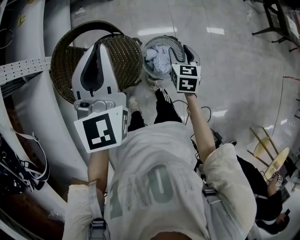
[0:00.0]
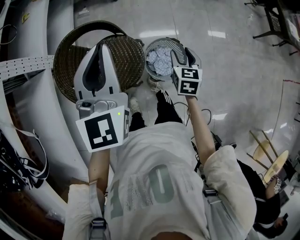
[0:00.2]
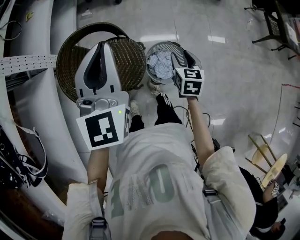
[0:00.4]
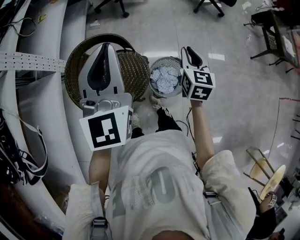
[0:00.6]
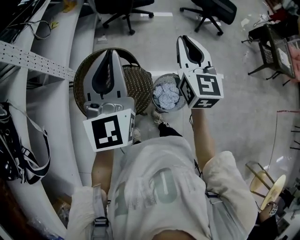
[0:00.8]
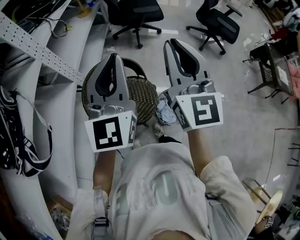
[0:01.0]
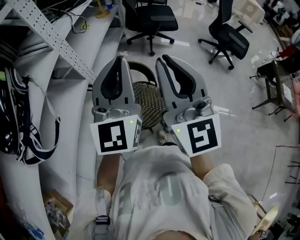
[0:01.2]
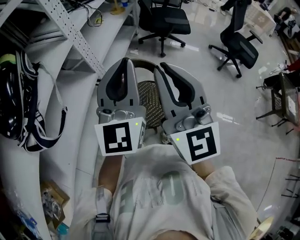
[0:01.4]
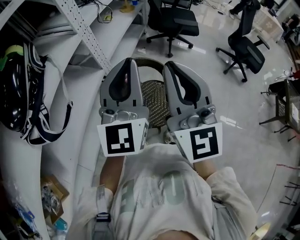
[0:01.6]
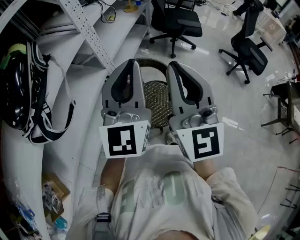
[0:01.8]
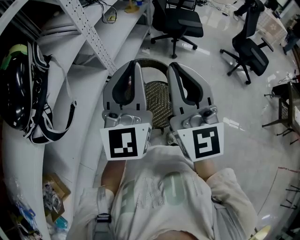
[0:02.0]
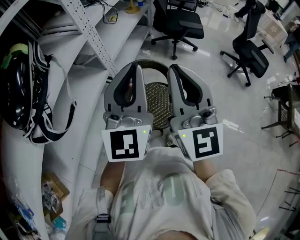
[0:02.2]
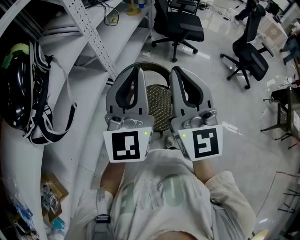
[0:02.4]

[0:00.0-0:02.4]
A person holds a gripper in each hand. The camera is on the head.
0:00.0 to 0:01.2: The left gripper is displaced upward, to the left and backward by some 25 cm, and turns by some 30 degrees; the right gripper travels upward and to the left by roughly 50 cm, points its fingers roughly 60 degrees further upward, and closes.
0:01.2 to 0:02.4: The right gripper moves roughly 5 cm. Meanwhile the left gripper goes roughly 5 cm to the left.

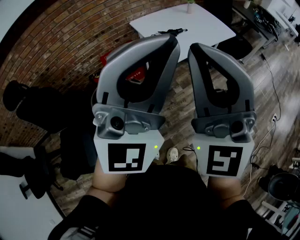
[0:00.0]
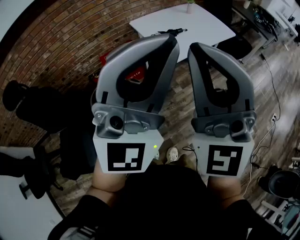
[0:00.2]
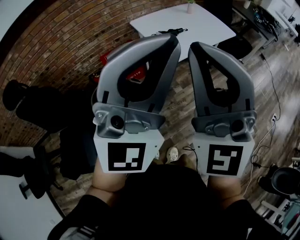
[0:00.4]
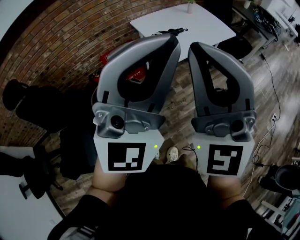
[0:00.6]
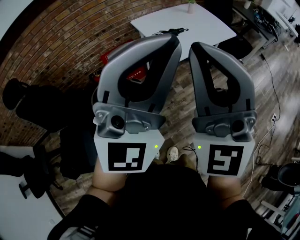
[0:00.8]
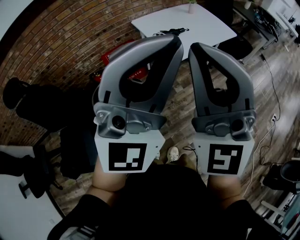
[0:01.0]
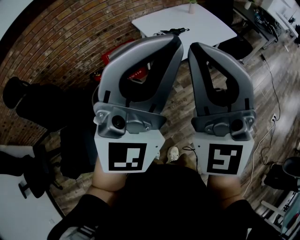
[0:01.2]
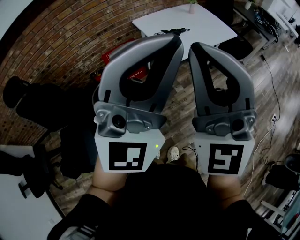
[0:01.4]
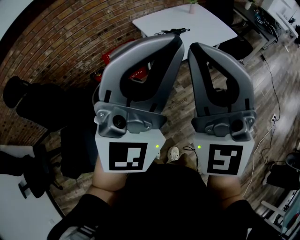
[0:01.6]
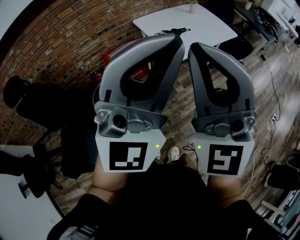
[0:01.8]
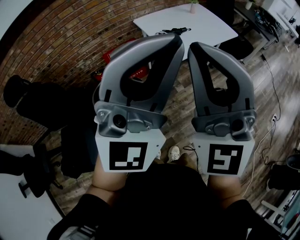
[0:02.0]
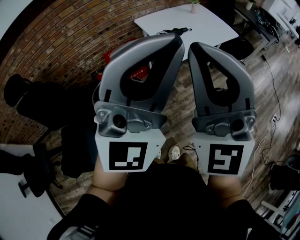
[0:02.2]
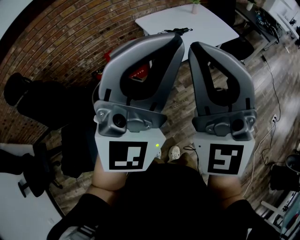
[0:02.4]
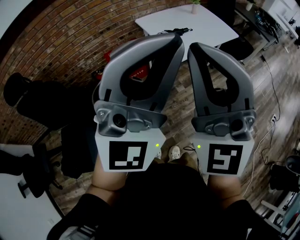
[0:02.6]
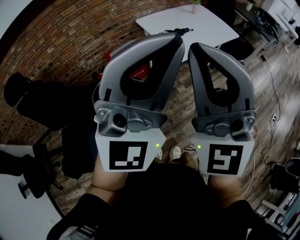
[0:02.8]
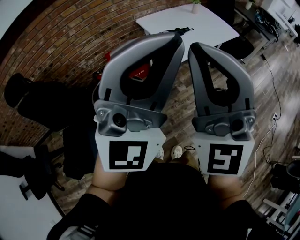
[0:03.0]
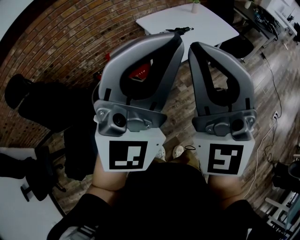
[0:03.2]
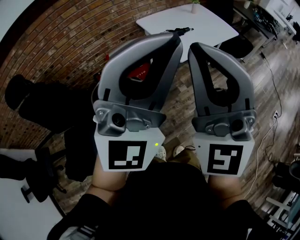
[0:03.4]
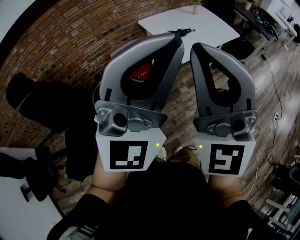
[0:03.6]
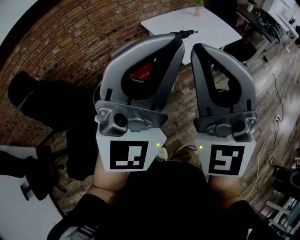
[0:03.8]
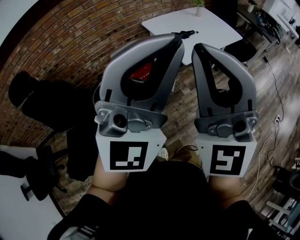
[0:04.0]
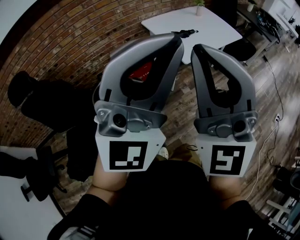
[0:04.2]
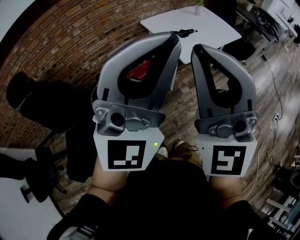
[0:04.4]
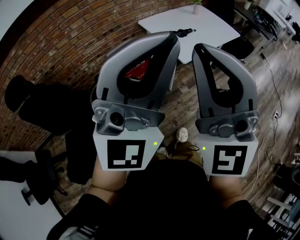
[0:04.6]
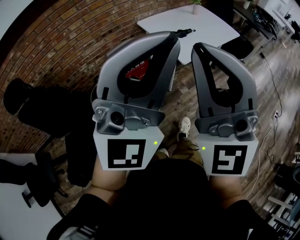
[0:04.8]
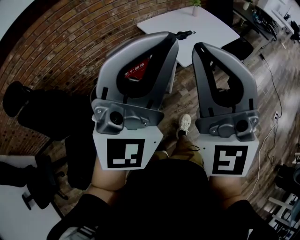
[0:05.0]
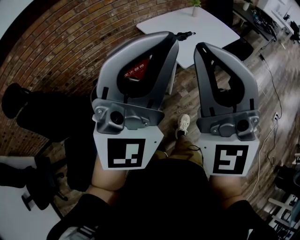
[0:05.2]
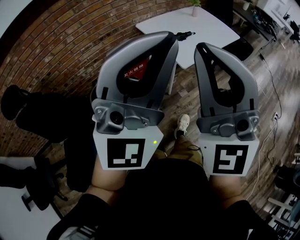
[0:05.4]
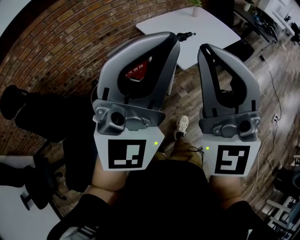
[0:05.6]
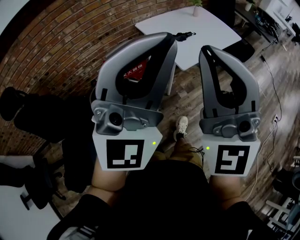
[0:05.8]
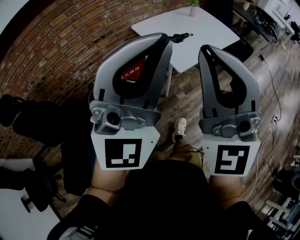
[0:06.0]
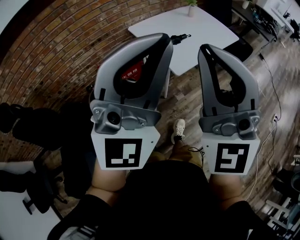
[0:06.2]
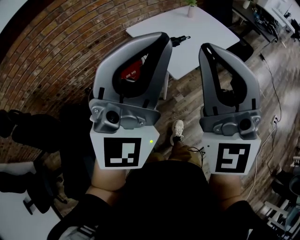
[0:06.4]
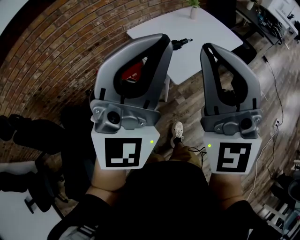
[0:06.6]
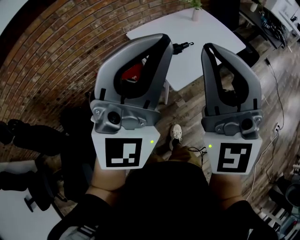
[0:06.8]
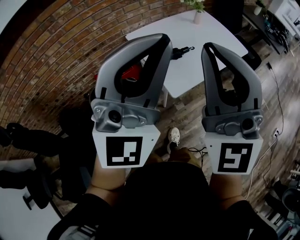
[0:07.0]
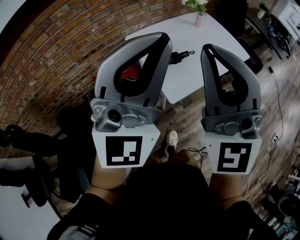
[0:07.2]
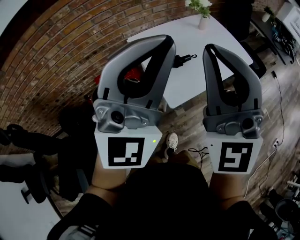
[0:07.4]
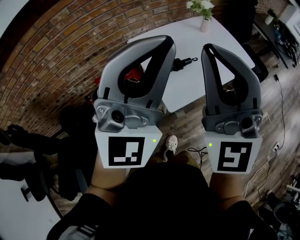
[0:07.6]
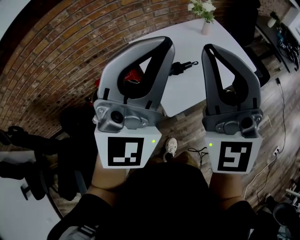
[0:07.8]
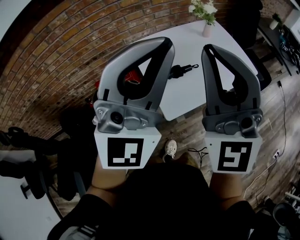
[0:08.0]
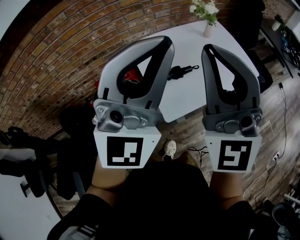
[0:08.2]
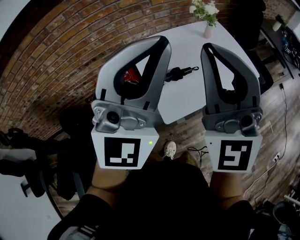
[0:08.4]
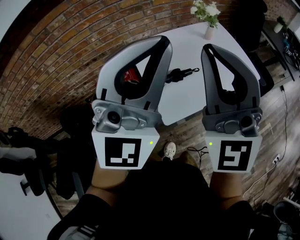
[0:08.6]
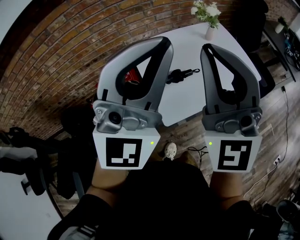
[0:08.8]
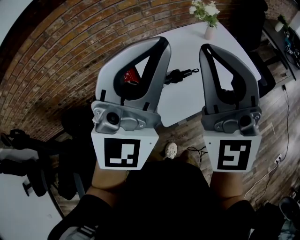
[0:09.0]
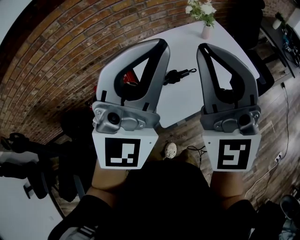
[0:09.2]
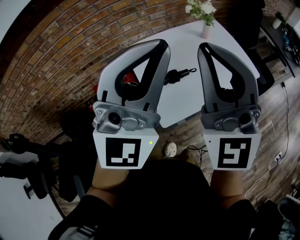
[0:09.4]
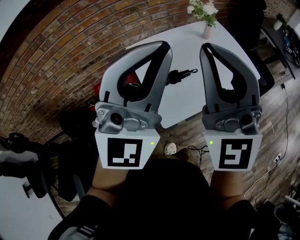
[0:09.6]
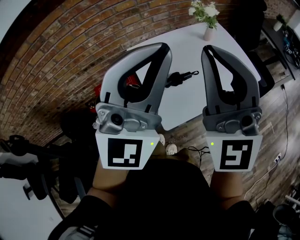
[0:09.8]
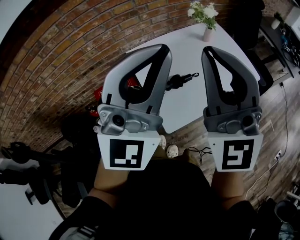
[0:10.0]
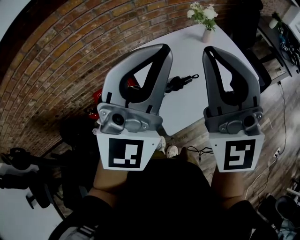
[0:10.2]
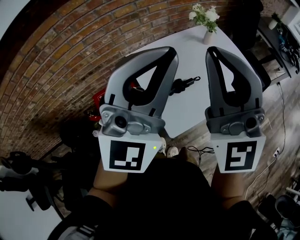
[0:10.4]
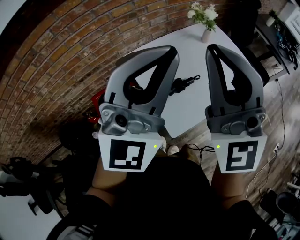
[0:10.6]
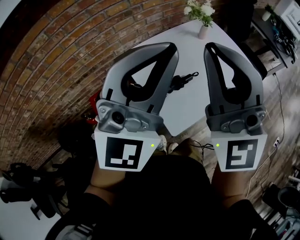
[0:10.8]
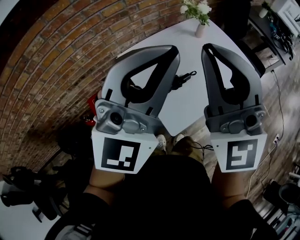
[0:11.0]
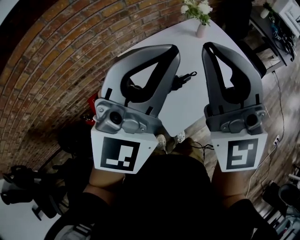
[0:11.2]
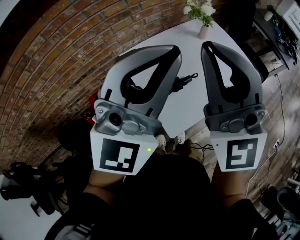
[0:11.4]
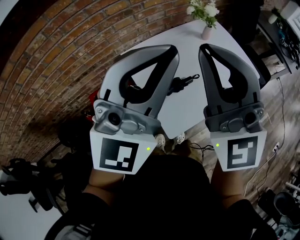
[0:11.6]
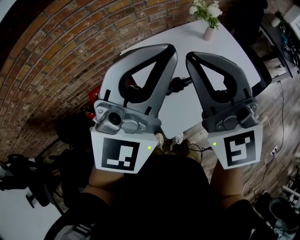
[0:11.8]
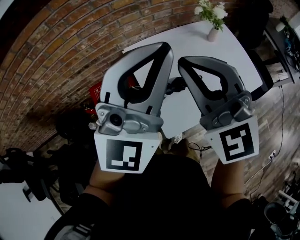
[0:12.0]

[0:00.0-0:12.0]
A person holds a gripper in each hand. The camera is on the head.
0:00.0 to 0:01.6: The grippers stay close to where they were, moving slightly.
0:01.6 to 0:03.0: There are only small adjustments of the grippers.
0:03.0 to 0:04.4: The grippers stay close to where they were, moving slightly.
0:04.4 to 0:06.0: The grippers both shift forward by roughly 10 cm.
0:06.0 to 0:07.6: Both grippers move forward, roughly 30 cm.
0:07.6 to 0:09.0: Both grippers move forward, roughly 10 cm.
0:09.0 to 0:10.4: The grippers both shift forward by about 5 cm.
0:10.4 to 0:12.0: The left gripper changes place by about 5 cm, while the right gripper is displaced downward by some 10 cm, and turns by approximately 30 degrees.

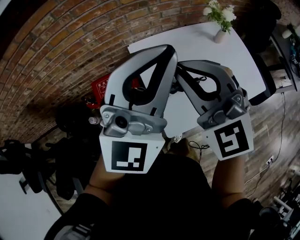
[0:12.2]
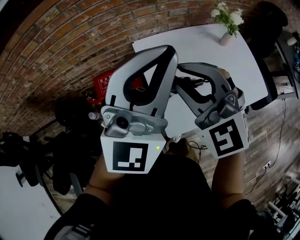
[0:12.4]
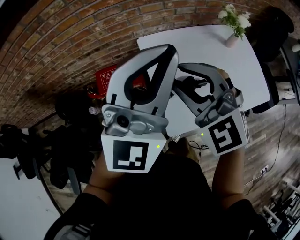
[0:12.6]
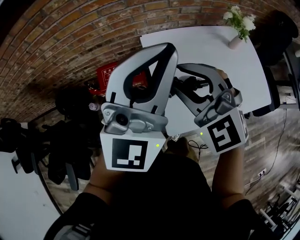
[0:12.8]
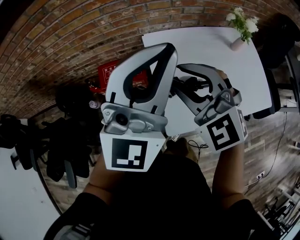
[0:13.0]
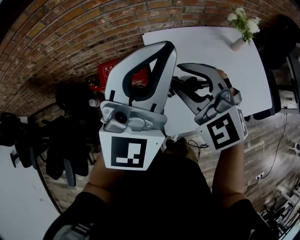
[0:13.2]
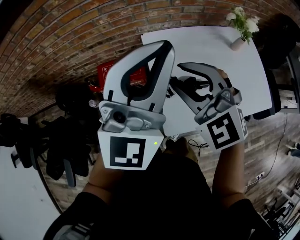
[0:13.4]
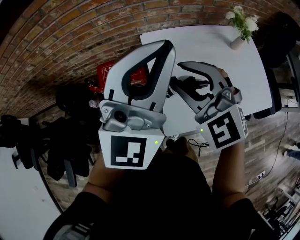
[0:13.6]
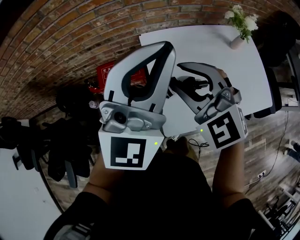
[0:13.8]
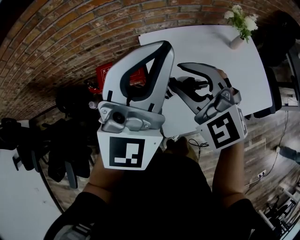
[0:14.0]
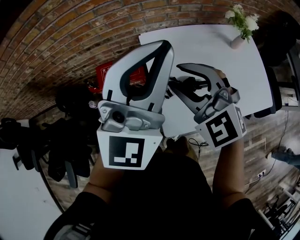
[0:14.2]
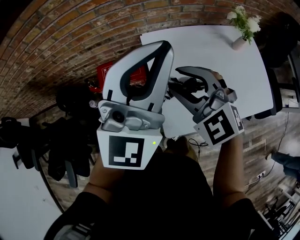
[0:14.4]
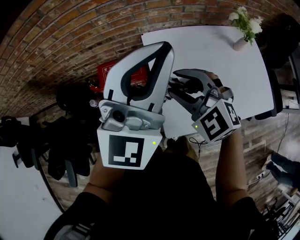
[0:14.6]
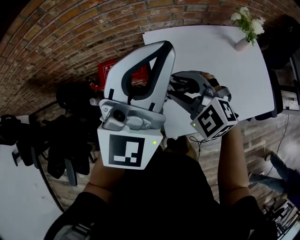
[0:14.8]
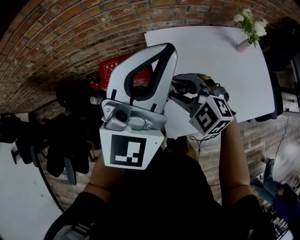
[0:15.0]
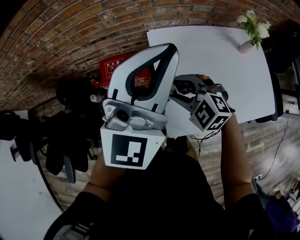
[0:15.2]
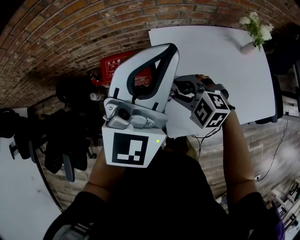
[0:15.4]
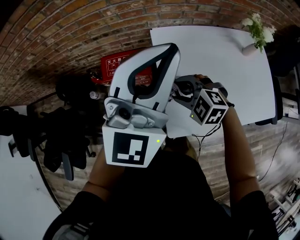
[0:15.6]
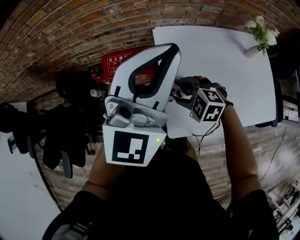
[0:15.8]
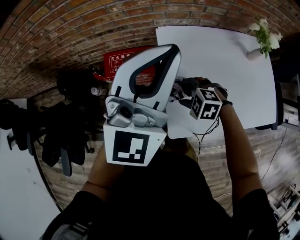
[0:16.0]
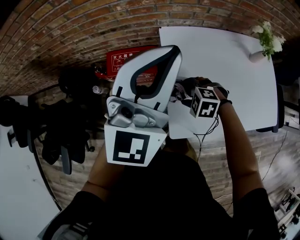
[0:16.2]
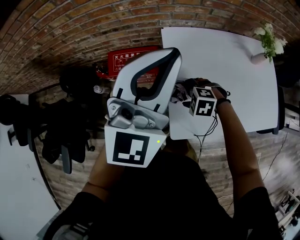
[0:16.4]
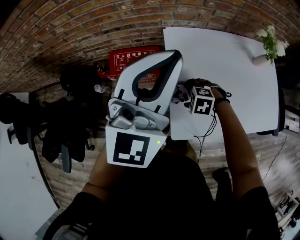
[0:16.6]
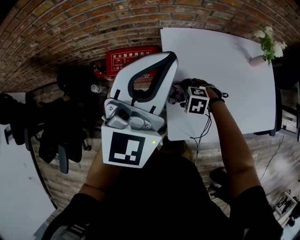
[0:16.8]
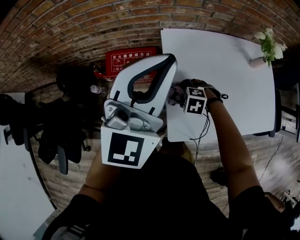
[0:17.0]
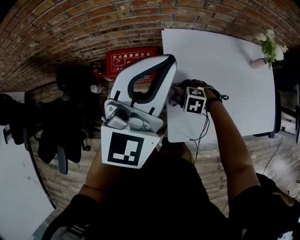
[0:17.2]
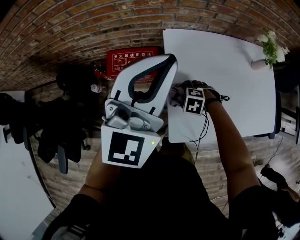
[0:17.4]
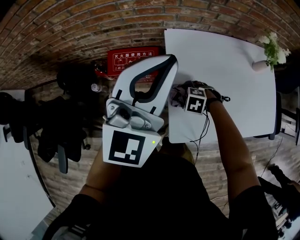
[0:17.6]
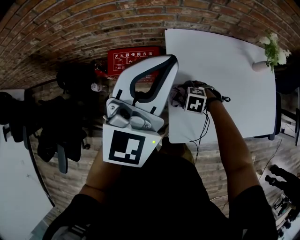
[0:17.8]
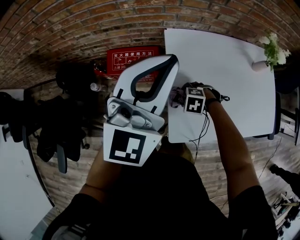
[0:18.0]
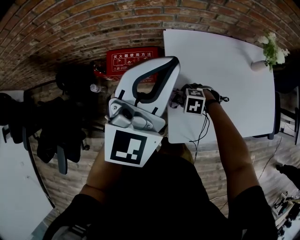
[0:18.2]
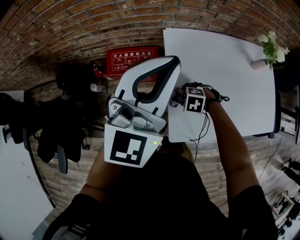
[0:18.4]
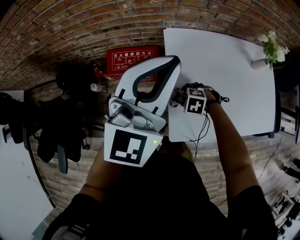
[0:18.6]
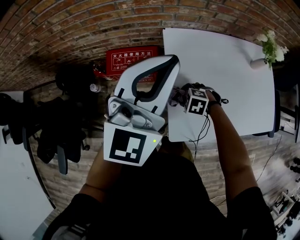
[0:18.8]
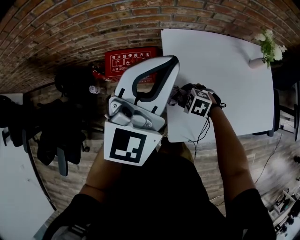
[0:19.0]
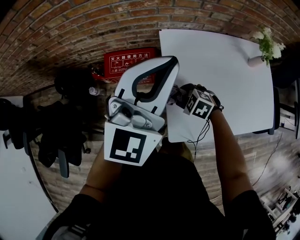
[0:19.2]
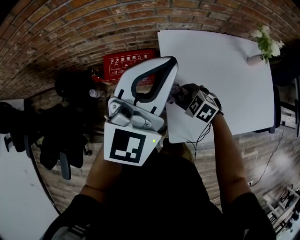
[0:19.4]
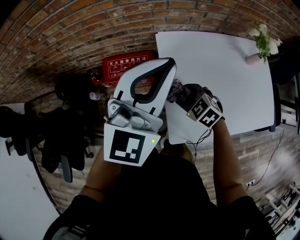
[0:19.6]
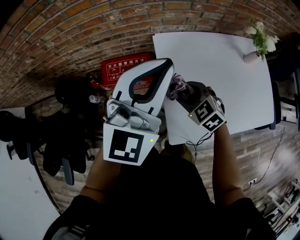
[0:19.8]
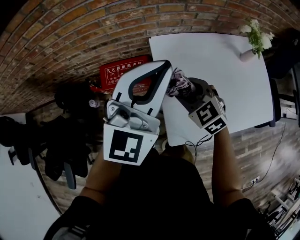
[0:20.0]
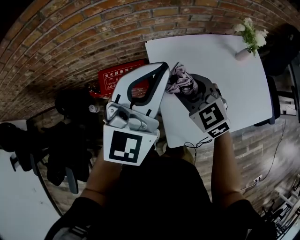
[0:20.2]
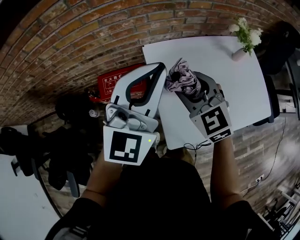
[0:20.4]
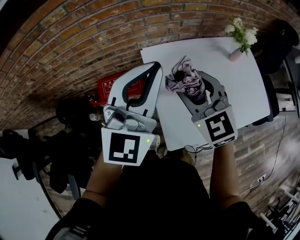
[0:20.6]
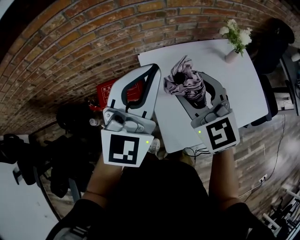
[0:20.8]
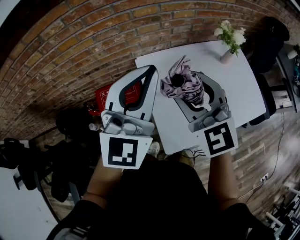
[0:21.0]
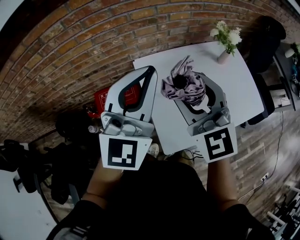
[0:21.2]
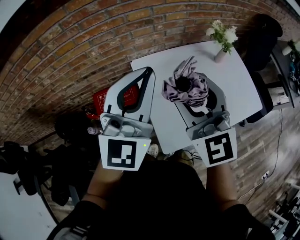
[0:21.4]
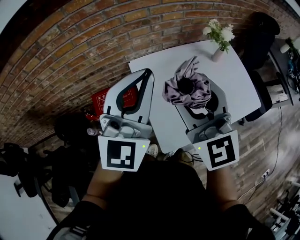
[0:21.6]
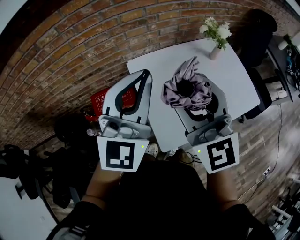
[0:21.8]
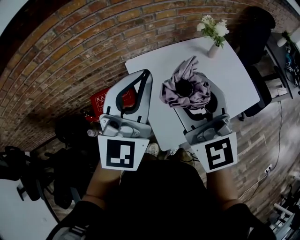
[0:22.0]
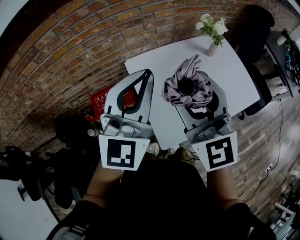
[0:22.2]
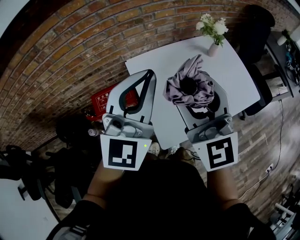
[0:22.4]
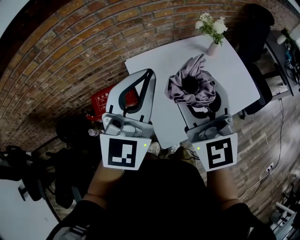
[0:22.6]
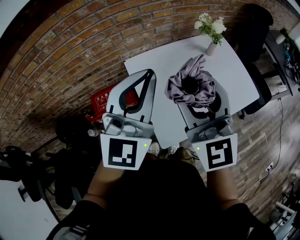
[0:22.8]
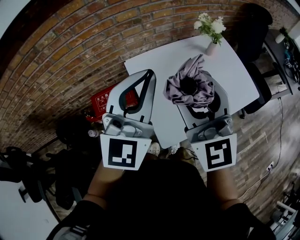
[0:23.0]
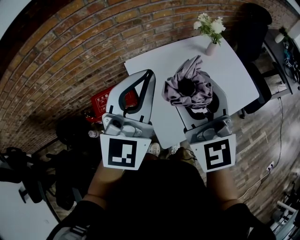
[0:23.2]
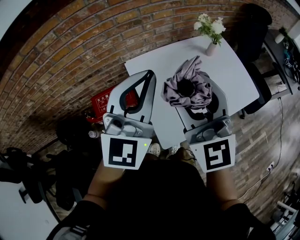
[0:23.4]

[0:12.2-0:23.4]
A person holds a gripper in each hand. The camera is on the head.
0:12.2 to 0:13.8: The right gripper travels downward by approximately 10 cm, and opens its fingers.
0:13.8 to 0:15.4: The left gripper moves some 5 cm; the right gripper is displaced downward by some 20 cm, and changes its angle by roughly 30 degrees.
0:15.4 to 0:17.0: The right gripper moves downward, some 15 cm, swivels roughly 30 degrees, and opens up; the left gripper moves about 5 cm.
0:17.0 to 0:18.6: There are only small adjustments of the grippers.
0:18.6 to 0:20.2: The right gripper shifts some 25 cm upward, and tips its fingers upward by some 50 degrees.
0:20.2 to 0:21.8: The right gripper heads upward, covering roughly 20 cm, and tilts its fingers approximately 40 degrees upward. The left gripper travels upward by roughly 5 cm.
0:21.8 to 0:23.4: The grippers stay close to where they were, moving slightly.
